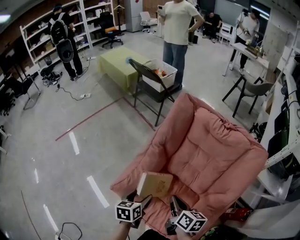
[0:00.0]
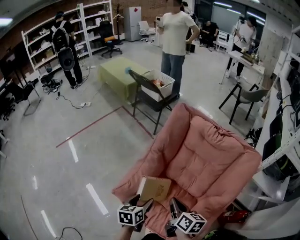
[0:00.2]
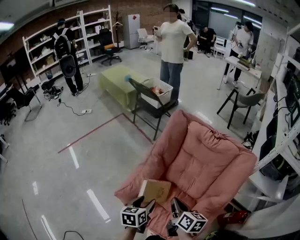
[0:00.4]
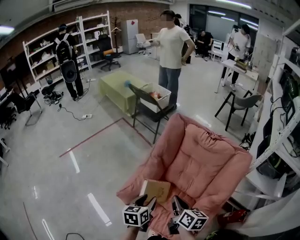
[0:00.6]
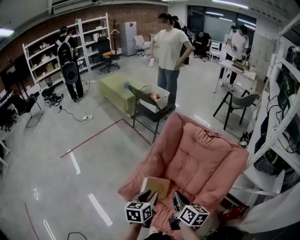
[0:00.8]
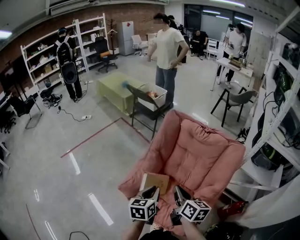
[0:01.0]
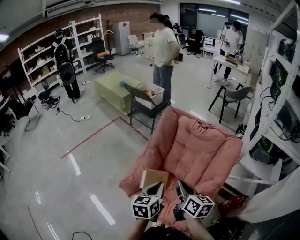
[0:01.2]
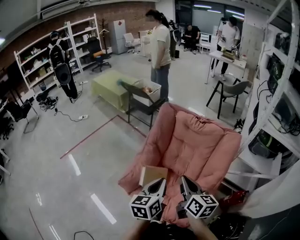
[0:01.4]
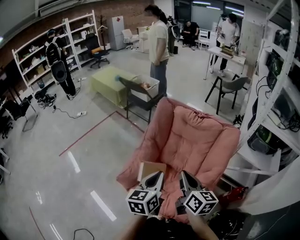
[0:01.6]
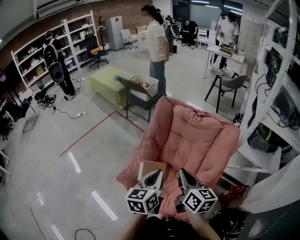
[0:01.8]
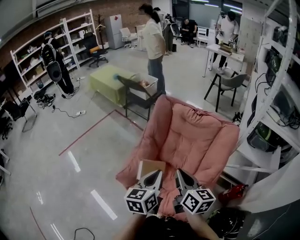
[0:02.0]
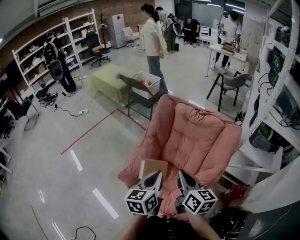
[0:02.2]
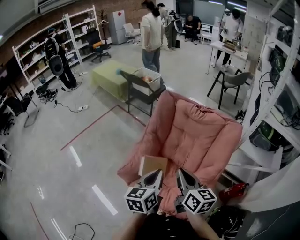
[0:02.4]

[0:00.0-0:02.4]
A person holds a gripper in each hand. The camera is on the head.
0:00.0 to 0:01.2: The left gripper moves upward and to the right, about 25 cm, rotates some 20 degrees, and closes its fingers. The right gripper travels upward by approximately 20 cm.
0:01.2 to 0:02.4: The grippers make only small movements.

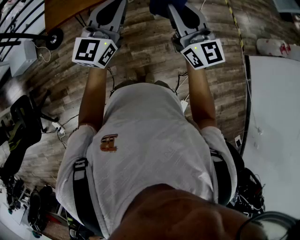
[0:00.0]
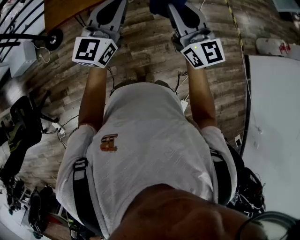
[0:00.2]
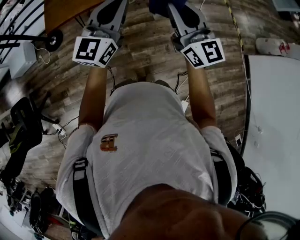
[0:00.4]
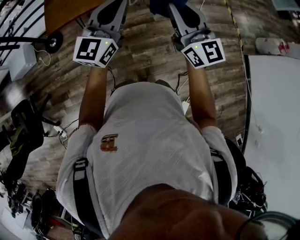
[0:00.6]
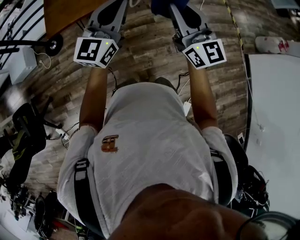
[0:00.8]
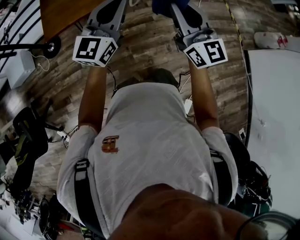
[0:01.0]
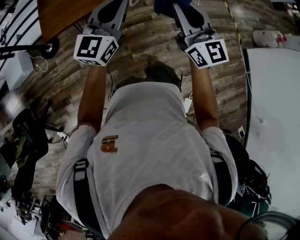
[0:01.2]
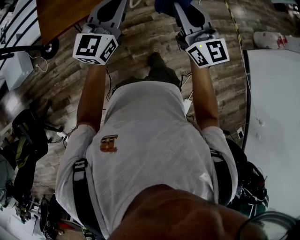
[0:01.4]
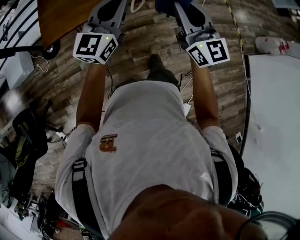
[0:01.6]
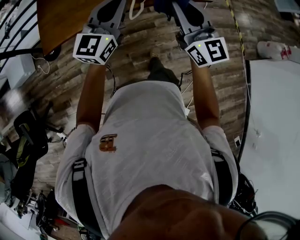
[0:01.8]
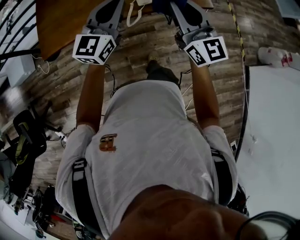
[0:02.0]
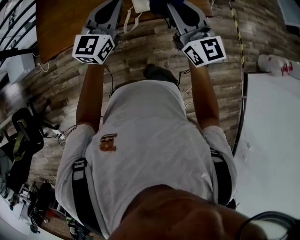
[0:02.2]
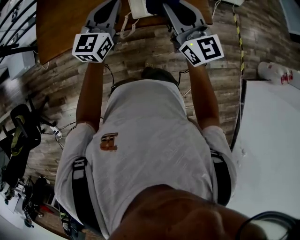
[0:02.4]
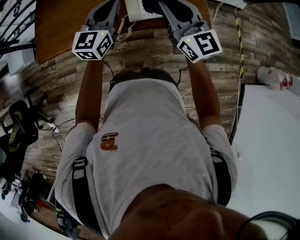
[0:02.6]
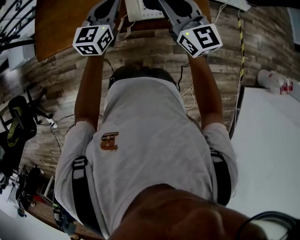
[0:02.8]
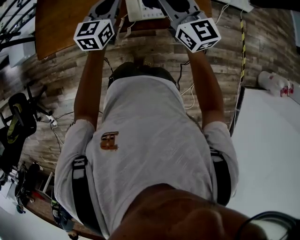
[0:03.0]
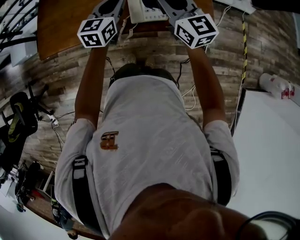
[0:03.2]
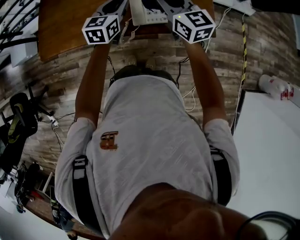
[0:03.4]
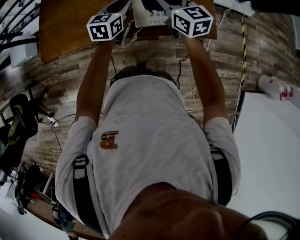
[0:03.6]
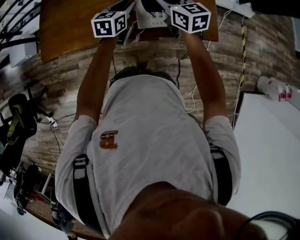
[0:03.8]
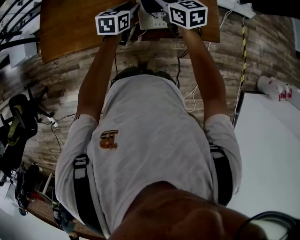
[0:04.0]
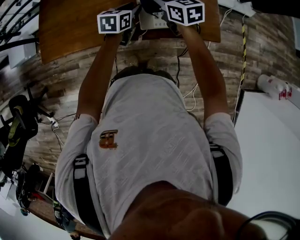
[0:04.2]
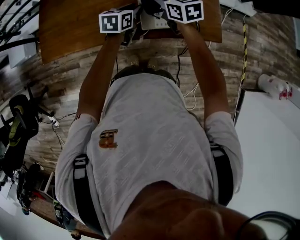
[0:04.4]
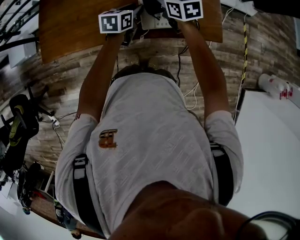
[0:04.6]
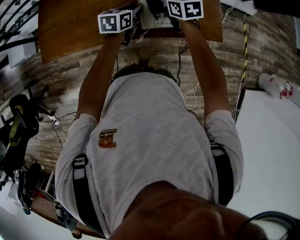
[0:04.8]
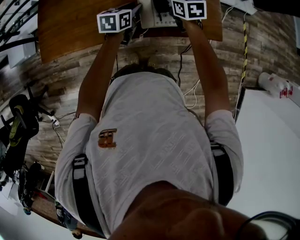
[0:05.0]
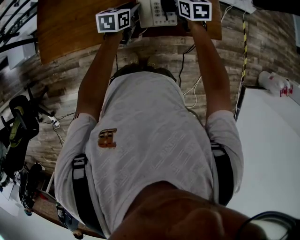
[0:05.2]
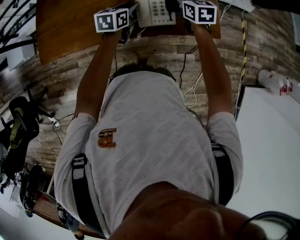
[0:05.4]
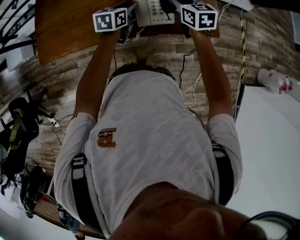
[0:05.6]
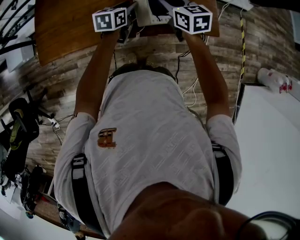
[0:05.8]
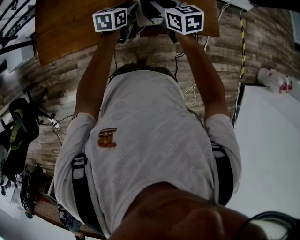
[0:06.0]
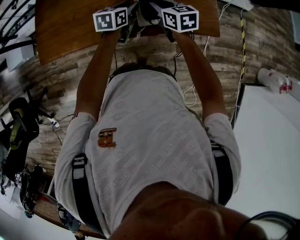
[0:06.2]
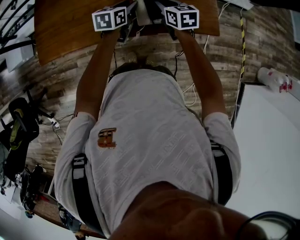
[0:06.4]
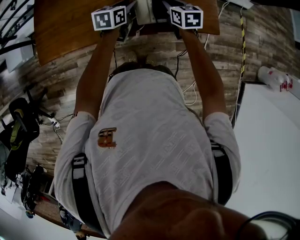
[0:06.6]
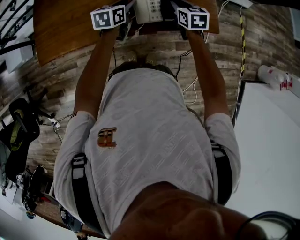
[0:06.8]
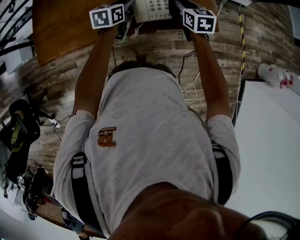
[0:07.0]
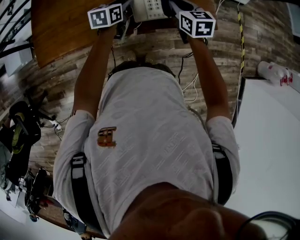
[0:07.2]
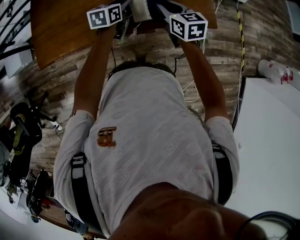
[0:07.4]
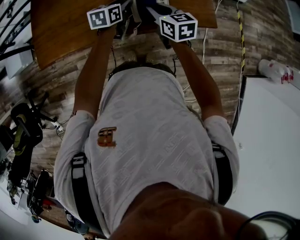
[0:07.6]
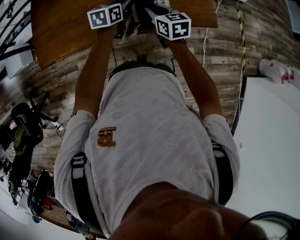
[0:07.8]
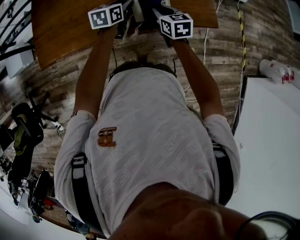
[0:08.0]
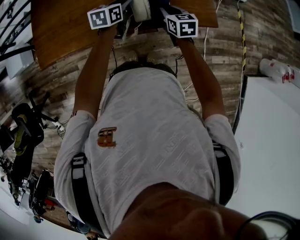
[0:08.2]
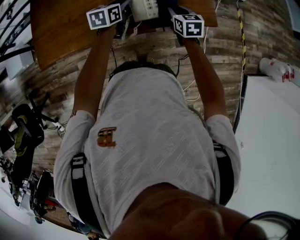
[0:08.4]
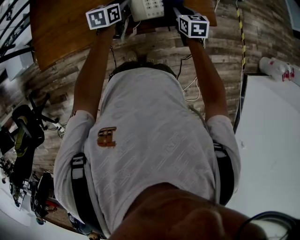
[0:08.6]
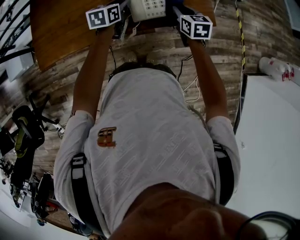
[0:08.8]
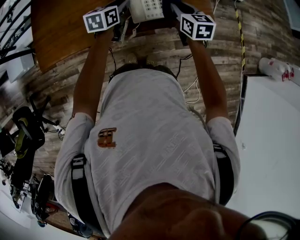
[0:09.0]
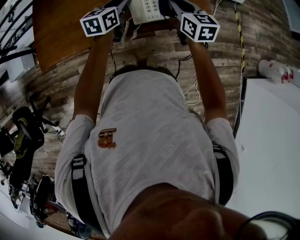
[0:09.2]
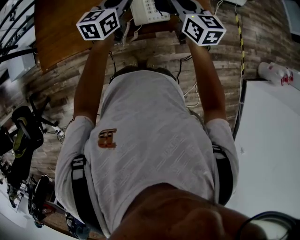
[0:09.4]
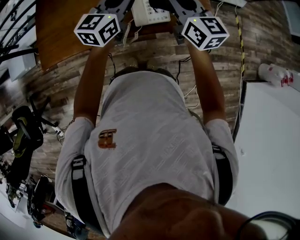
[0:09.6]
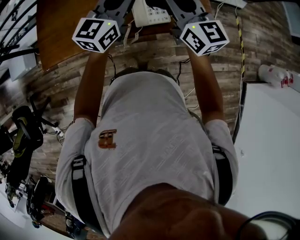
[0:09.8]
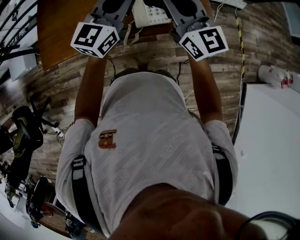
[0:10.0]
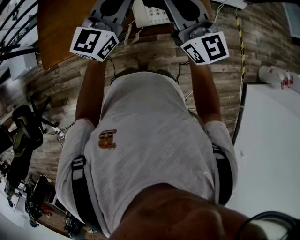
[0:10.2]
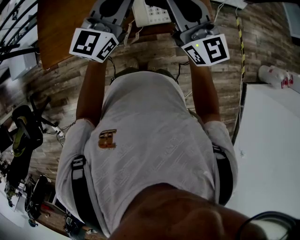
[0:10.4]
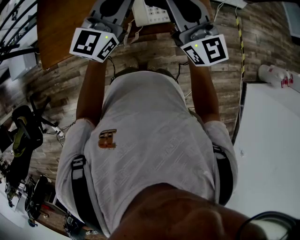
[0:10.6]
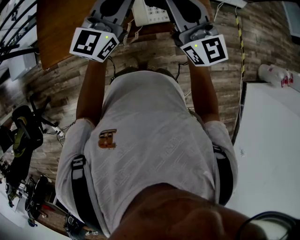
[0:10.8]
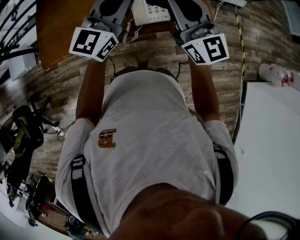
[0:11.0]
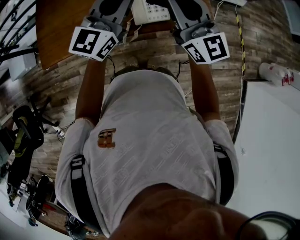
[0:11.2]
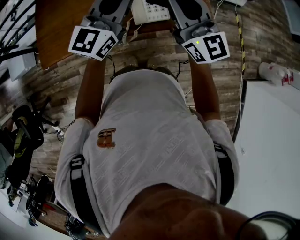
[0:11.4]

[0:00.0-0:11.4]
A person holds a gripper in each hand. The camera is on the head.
0:00.0 to 0:01.4: Both grippers travel together forward and to the left, some 10 cm.
0:01.4 to 0:02.8: Both grippers travel together forward, about 35 cm. The right gripper turns by some 20 degrees. Meanwhile the left gripper swivels roughly 30 degrees.
0:02.8 to 0:04.2: The right gripper travels forward, downward and to the left by approximately 20 cm, and rotates approximately 30 degrees, while the left gripper shifts roughly 15 cm downward and forward, changes its angle by roughly 30 degrees, and opens.
0:04.2 to 0:05.6: The right gripper shifts some 10 cm to the right.
0:05.6 to 0:07.2: The right gripper travels to the left and back again, about 5 cm each way.
0:07.2 to 0:08.6: The right gripper heads downward, covering approximately 5 cm, and moves roughly 10 cm to the left and comes back.
0:08.6 to 0:10.0: The grippers both shift upward by some 25 cm. The right gripper angles its fingers upward, by approximately 50 degrees. Meanwhile the left gripper tips its fingers upward by some 40 degrees, and closes up.
0:10.0 to 0:11.4: The grippers move only a little.

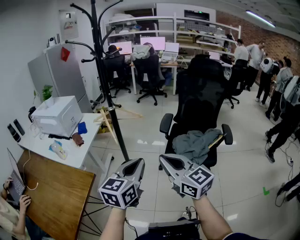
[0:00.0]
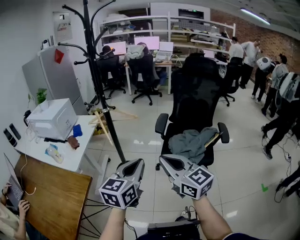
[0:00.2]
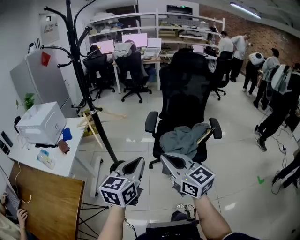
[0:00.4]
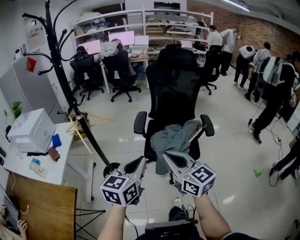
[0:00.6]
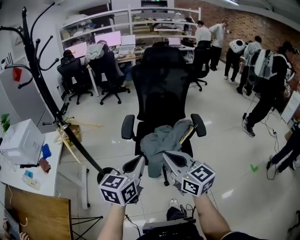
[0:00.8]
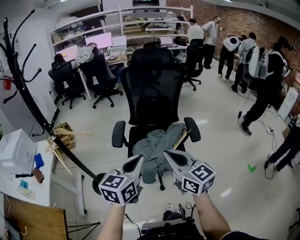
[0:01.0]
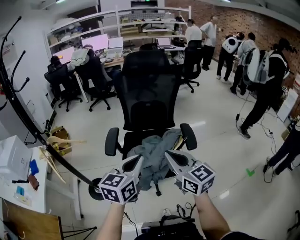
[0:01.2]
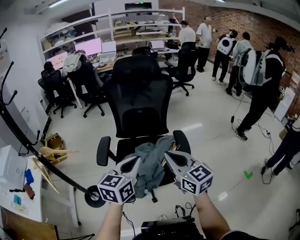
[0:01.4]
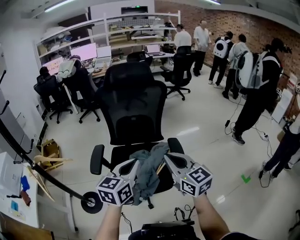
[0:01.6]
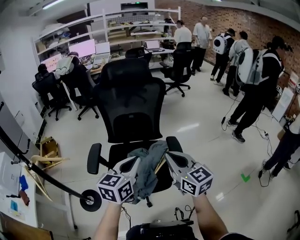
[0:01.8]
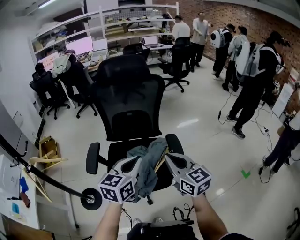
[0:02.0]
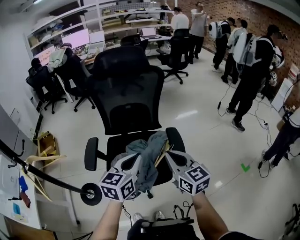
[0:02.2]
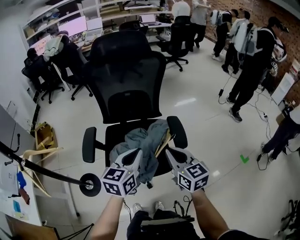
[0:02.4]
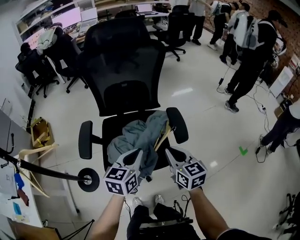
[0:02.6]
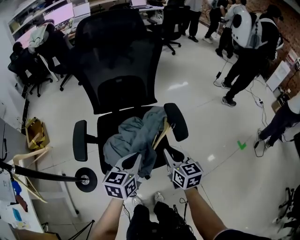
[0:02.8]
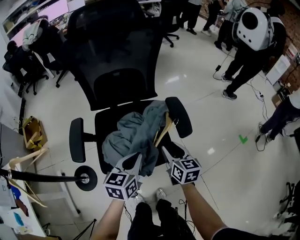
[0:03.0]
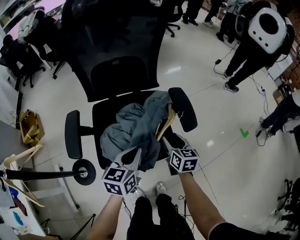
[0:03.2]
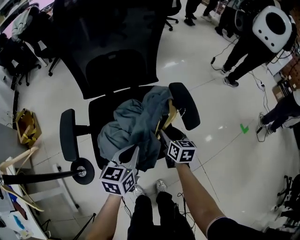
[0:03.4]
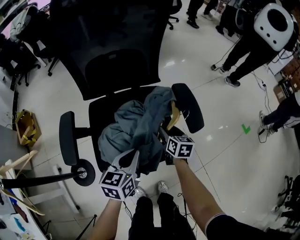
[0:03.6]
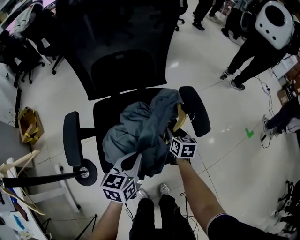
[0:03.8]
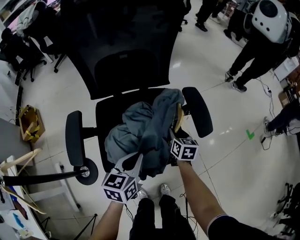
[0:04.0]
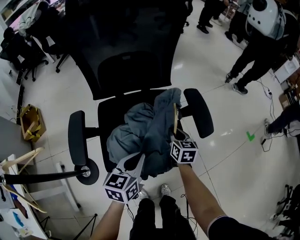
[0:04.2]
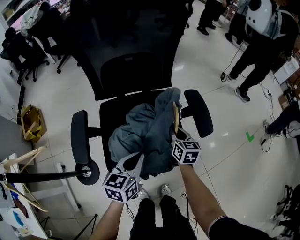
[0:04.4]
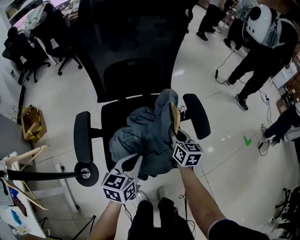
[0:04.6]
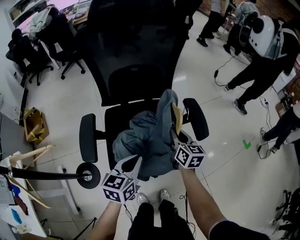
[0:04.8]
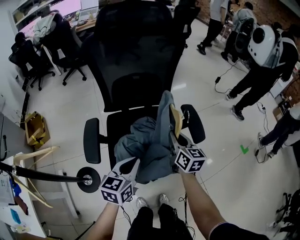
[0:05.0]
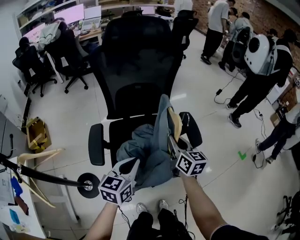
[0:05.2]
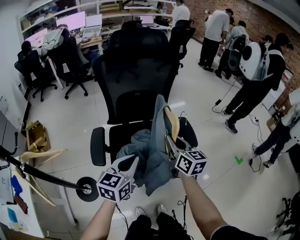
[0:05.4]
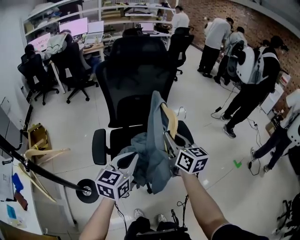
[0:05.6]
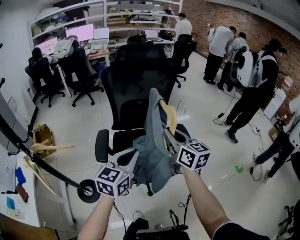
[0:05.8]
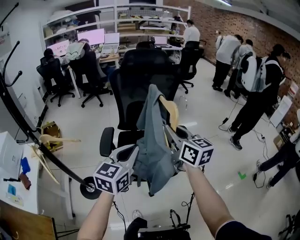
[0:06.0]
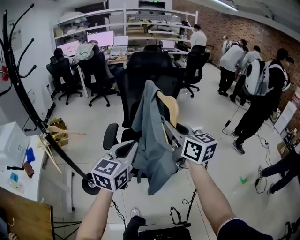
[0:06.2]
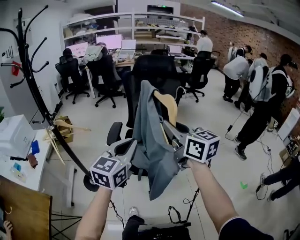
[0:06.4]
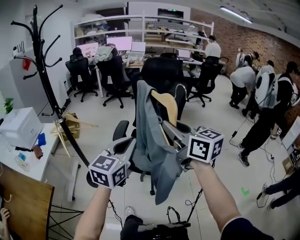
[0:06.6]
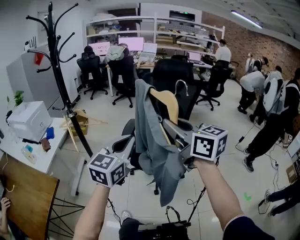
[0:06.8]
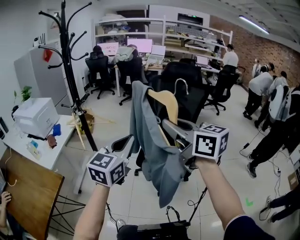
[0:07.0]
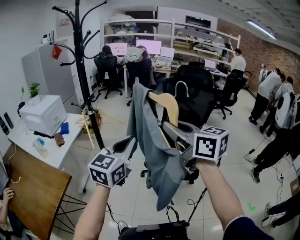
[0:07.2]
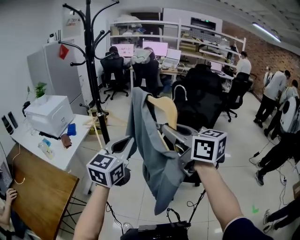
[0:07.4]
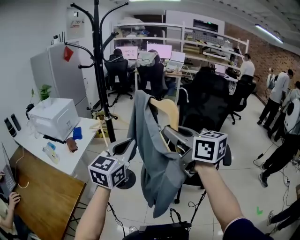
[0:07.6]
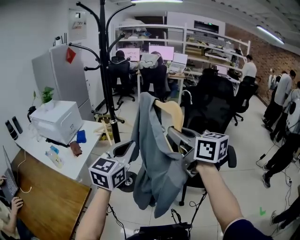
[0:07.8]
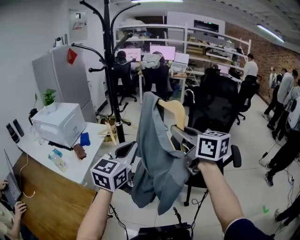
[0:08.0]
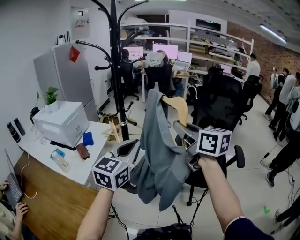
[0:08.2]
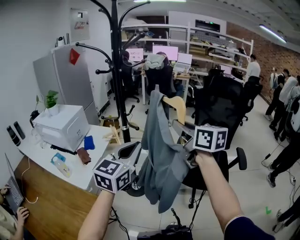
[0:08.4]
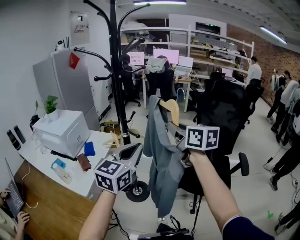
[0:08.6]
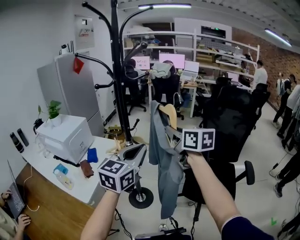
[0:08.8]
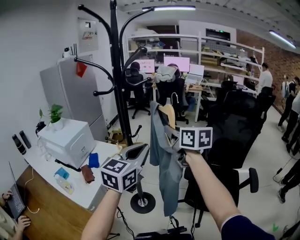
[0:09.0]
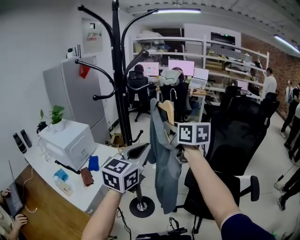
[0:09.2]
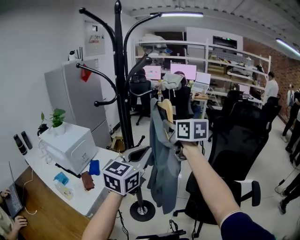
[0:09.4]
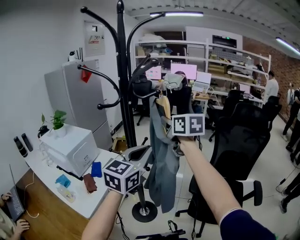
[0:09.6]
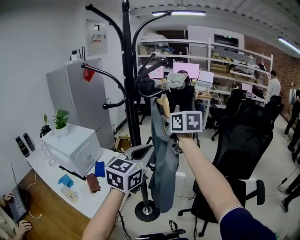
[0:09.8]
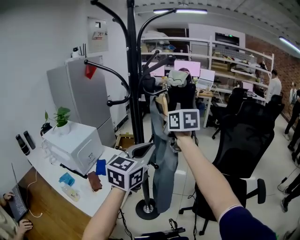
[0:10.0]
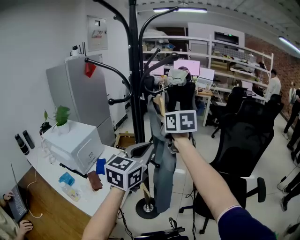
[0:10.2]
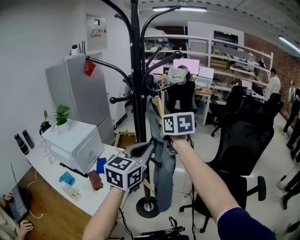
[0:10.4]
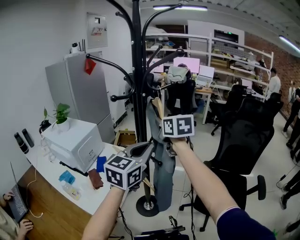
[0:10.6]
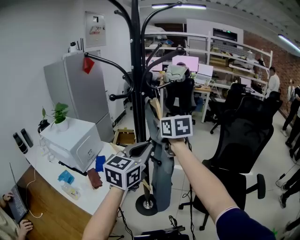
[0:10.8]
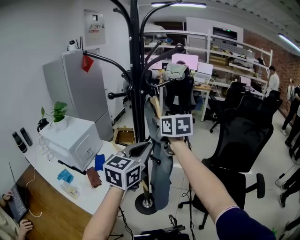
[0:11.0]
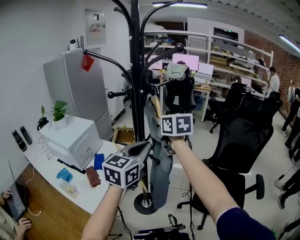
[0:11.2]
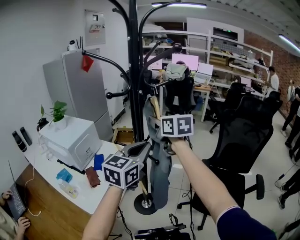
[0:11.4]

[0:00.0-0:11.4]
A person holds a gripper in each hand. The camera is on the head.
0:00.0 to 0:01.4: The two grippers go some 40 cm to the right and forward. The right gripper swivels some 30 degrees. Meanwhile the left gripper turns by roughly 20 degrees.
0:01.4 to 0:02.8: The right gripper moves downward, roughly 20 cm, and rotates approximately 30 degrees, while the left gripper moves downward and forward, about 20 cm.
0:02.8 to 0:04.2: The right gripper is displaced downward and forward by some 20 cm, and opens and closes again; the left gripper heads downward, covering some 10 cm.
0:04.2 to 0:05.6: The left gripper is displaced upward by about 20 cm. Meanwhile the right gripper shifts approximately 35 cm upward, and turns by roughly 30 degrees.
0:05.6 to 0:07.2: The left gripper shifts by about 30 cm, and turns by approximately 30 degrees, while the right gripper moves some 40 cm, and changes its angle by roughly 50 degrees.
0:07.2 to 0:08.6: The left gripper travels to the left and forward by about 25 cm; the right gripper moves forward and to the left, some 30 cm.
0:08.6 to 0:10.0: The left gripper is displaced forward by some 15 cm. Meanwhile the right gripper is displaced forward and to the left by roughly 25 cm.
0:10.0 to 0:11.4: The right gripper shifts by approximately 5 cm.
